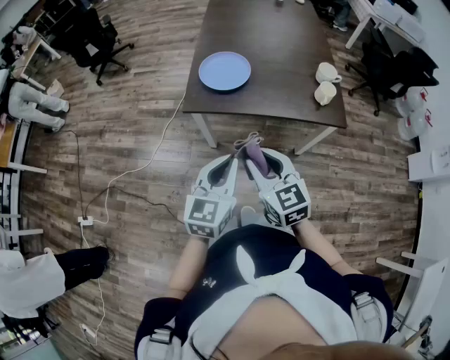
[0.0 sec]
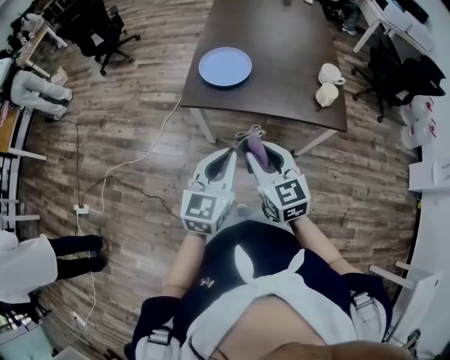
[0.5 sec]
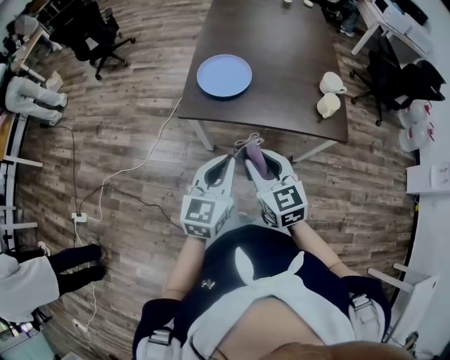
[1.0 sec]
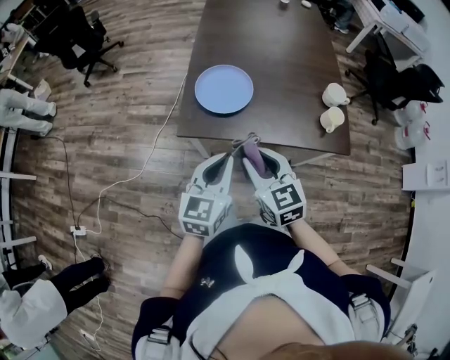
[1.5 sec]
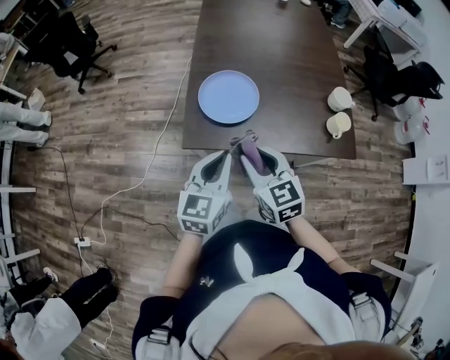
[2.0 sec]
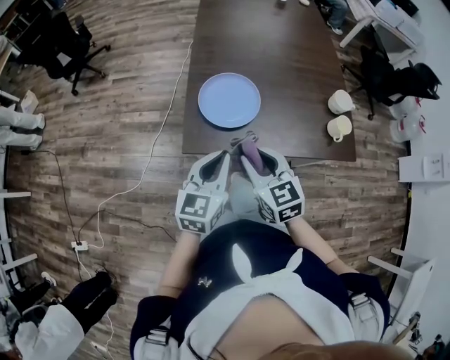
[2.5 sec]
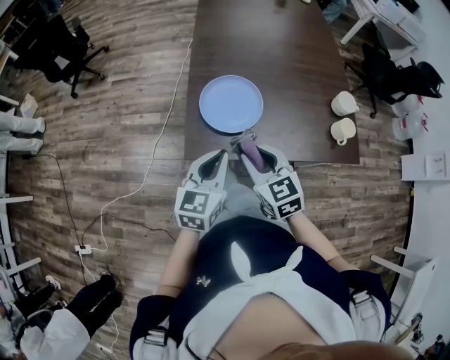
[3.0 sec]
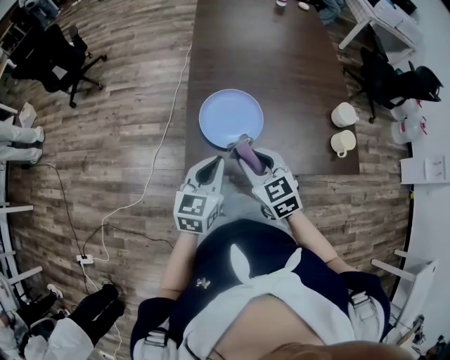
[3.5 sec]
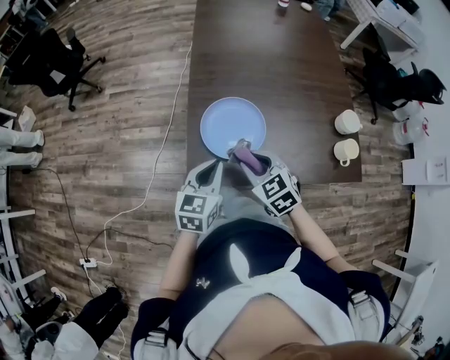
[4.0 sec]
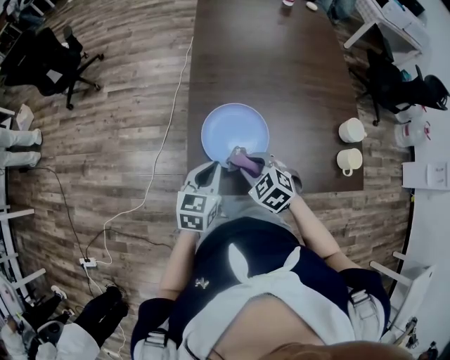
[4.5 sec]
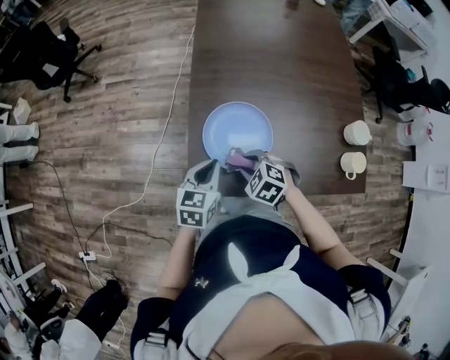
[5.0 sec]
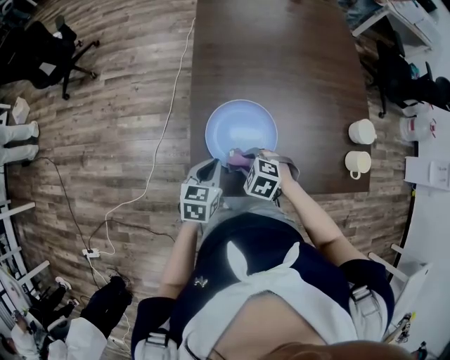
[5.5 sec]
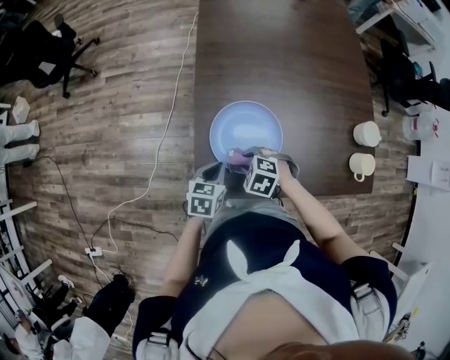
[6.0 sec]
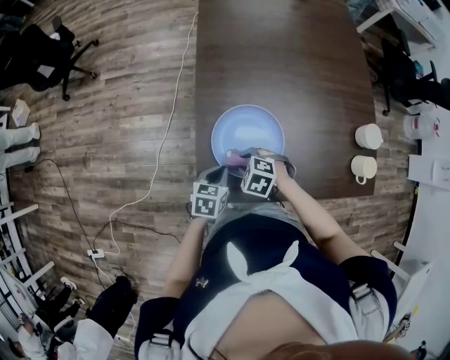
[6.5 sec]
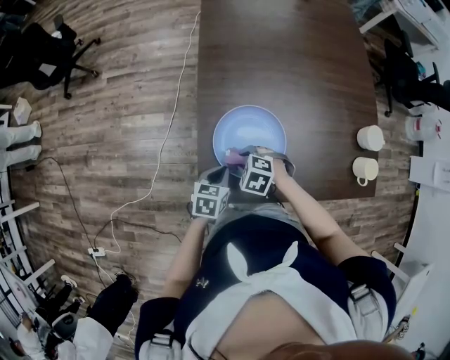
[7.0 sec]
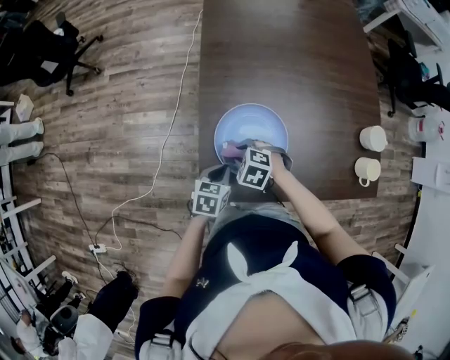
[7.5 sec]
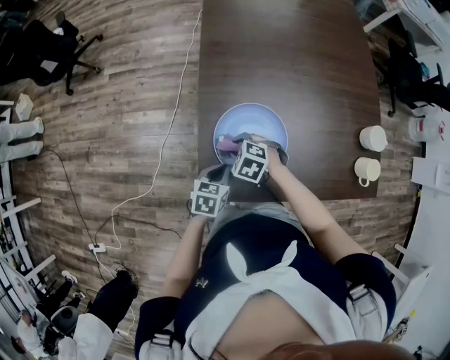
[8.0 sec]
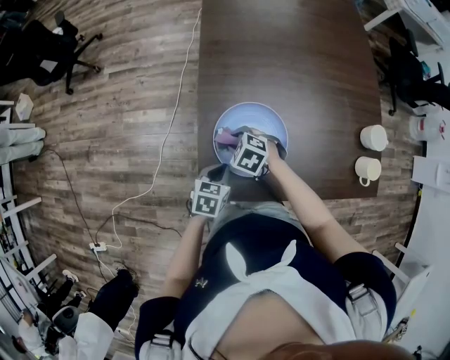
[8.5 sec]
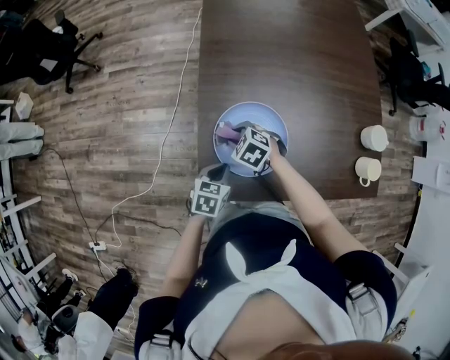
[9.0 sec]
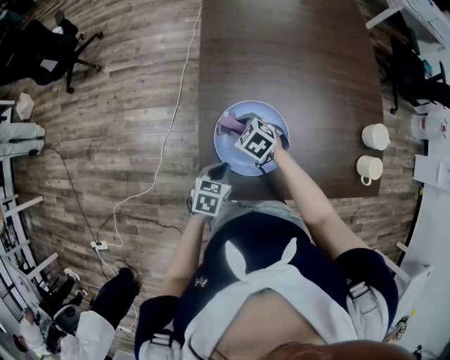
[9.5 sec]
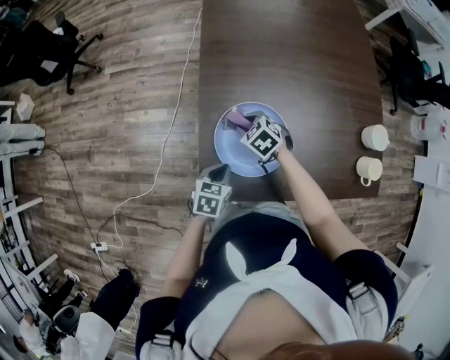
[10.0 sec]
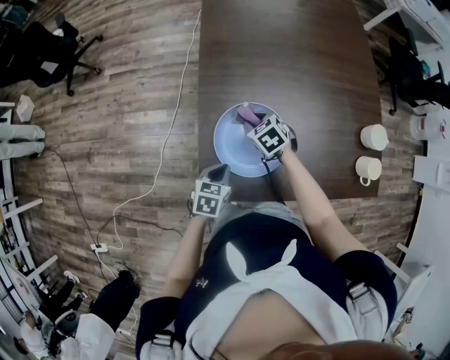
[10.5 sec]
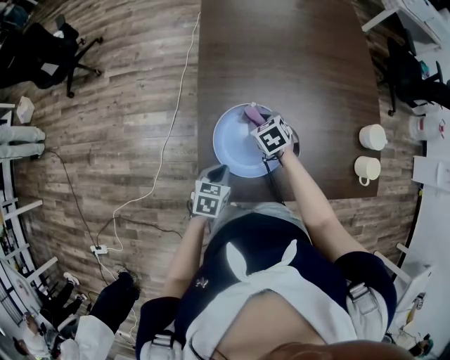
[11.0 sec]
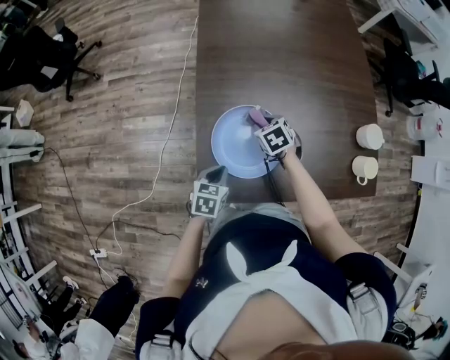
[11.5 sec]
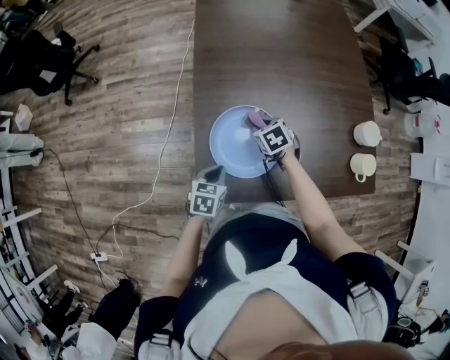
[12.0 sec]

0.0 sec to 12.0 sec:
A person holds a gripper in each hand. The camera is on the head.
0.0 sec to 2.0 sec: Both grippers travel together forward, some 25 cm.
2.0 sec to 4.0 sec: Both grippers travel together forward and downward, roughly 15 cm.
4.0 sec to 6.0 sec: Both grippers move downward and forward, approximately 20 cm. The right gripper angles its fingers downward, by some 30 degrees. Meanwhile the left gripper changes its angle by approximately 20 degrees.
6.0 sec to 8.0 sec: The right gripper goes about 5 cm forward.
8.0 sec to 10.0 sec: The right gripper is displaced forward by approximately 10 cm, and rotates roughly 20 degrees.
10.0 sec to 12.0 sec: The right gripper heads to the right, covering some 10 cm, and swivels about 20 degrees.

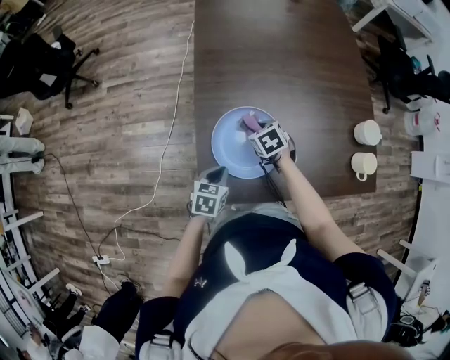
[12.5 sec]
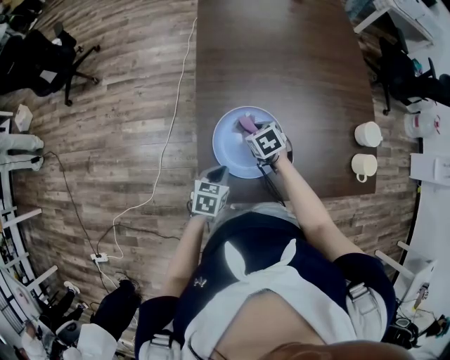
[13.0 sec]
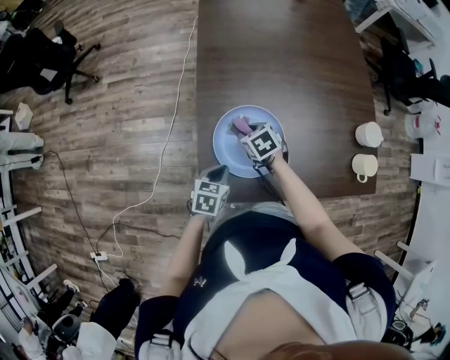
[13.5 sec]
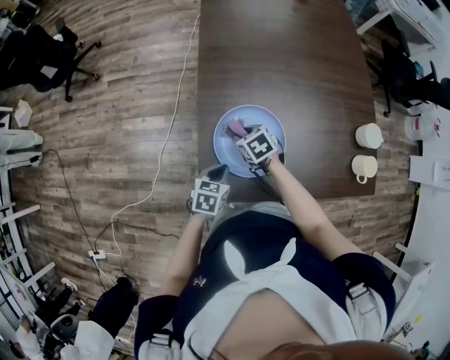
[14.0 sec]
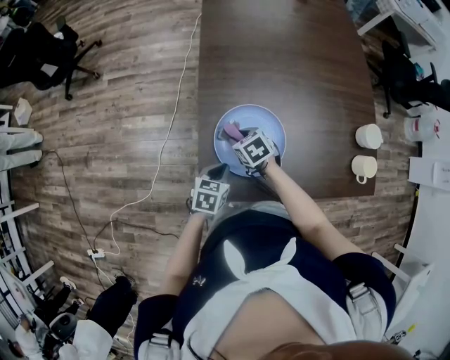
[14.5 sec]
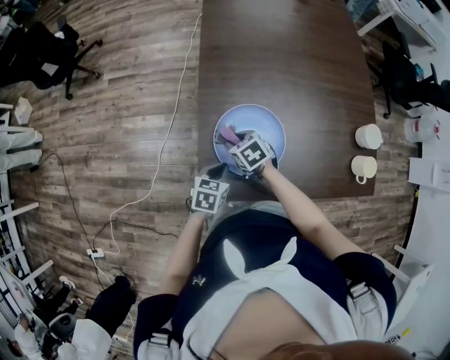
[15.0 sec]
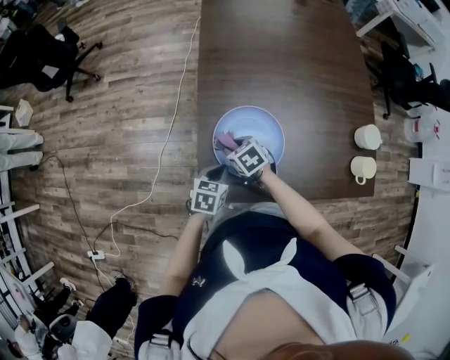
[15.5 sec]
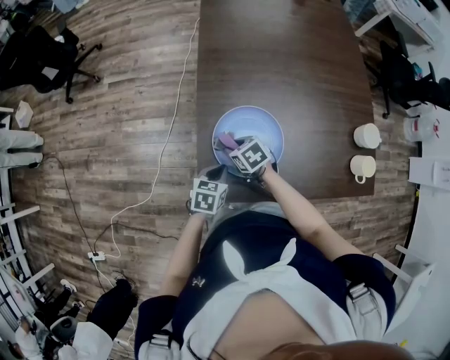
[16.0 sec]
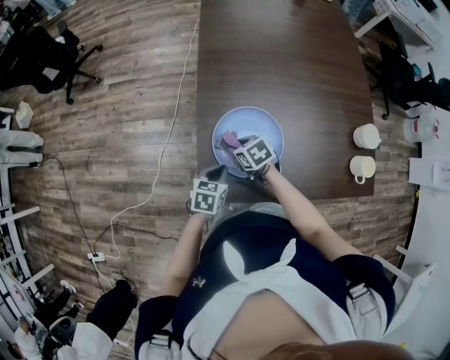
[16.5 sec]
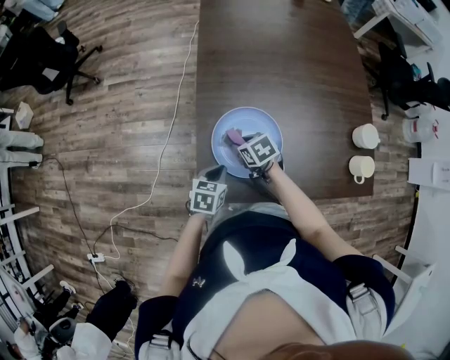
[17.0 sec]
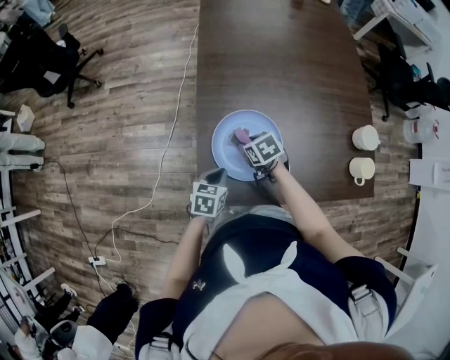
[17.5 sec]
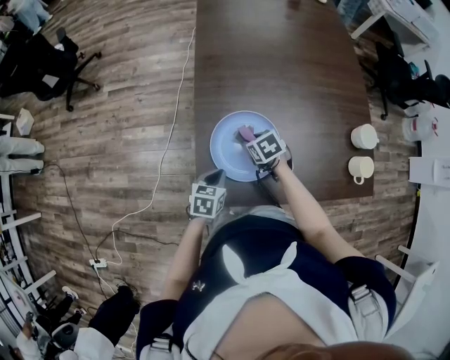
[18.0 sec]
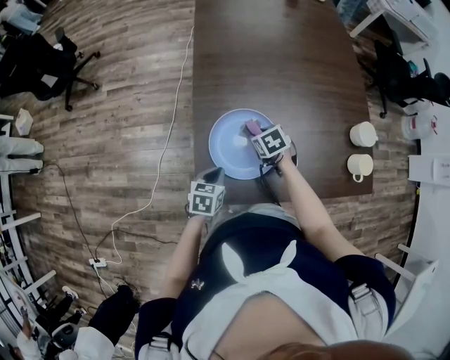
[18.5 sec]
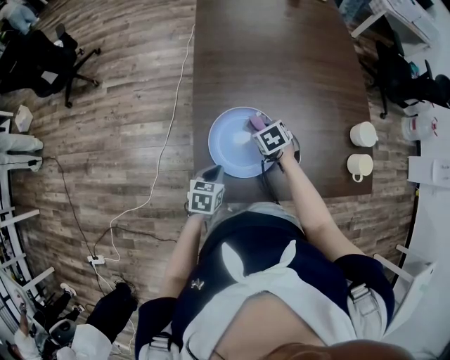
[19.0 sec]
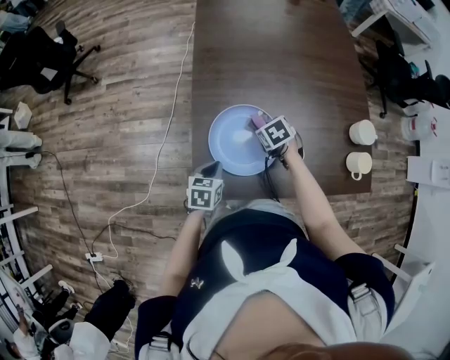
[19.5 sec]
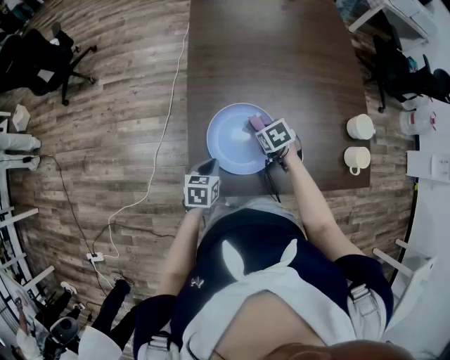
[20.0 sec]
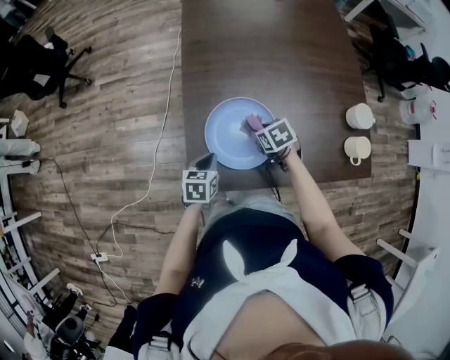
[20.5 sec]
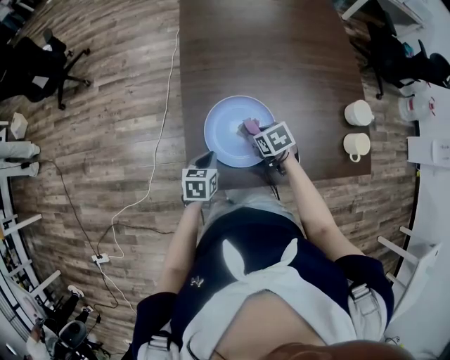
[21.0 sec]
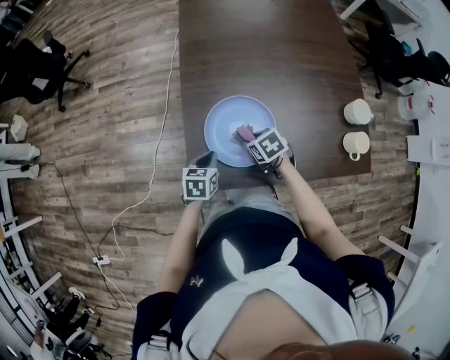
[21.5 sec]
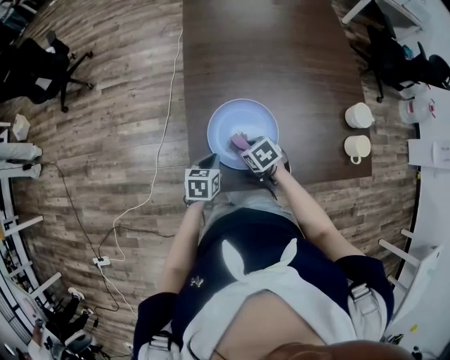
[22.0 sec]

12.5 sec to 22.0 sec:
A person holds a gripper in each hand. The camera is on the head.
12.5 sec to 14.5 sec: The right gripper moves to the left, some 10 cm.
14.5 sec to 16.5 sec: The grippers make only small movements.
16.5 sec to 18.0 sec: The right gripper is displaced to the right by some 5 cm.
18.0 sec to 20.0 sec: The right gripper moves to the right, roughly 5 cm.
20.0 sec to 22.0 sec: The right gripper travels to the left and backward by roughly 10 cm.

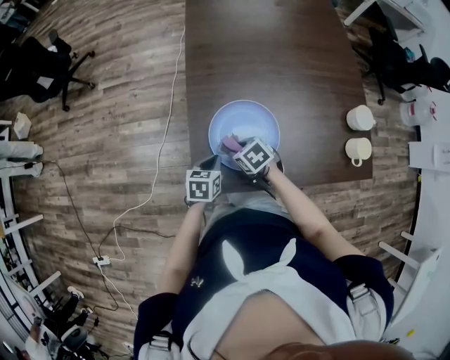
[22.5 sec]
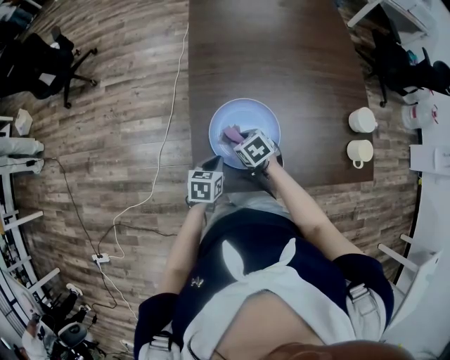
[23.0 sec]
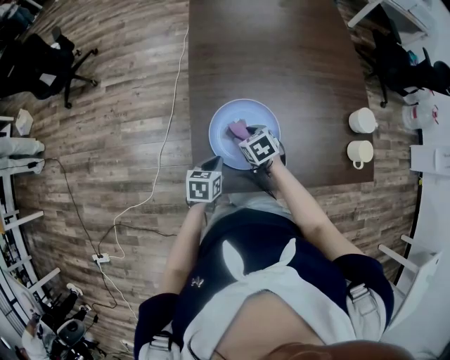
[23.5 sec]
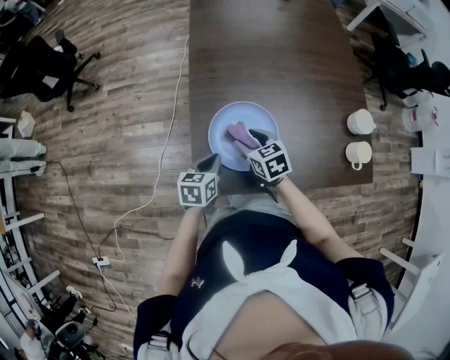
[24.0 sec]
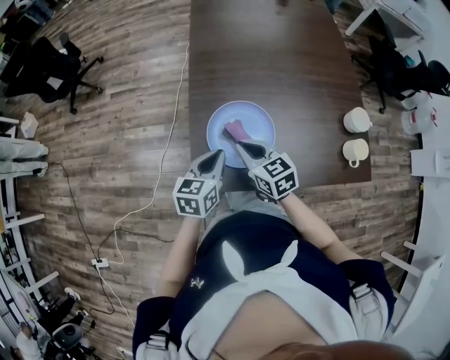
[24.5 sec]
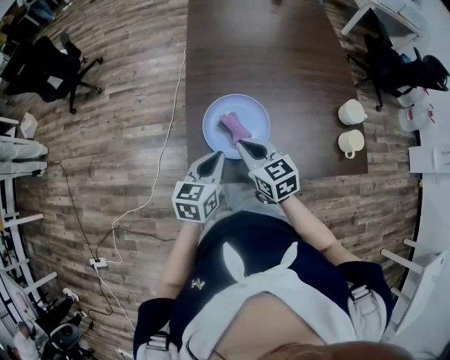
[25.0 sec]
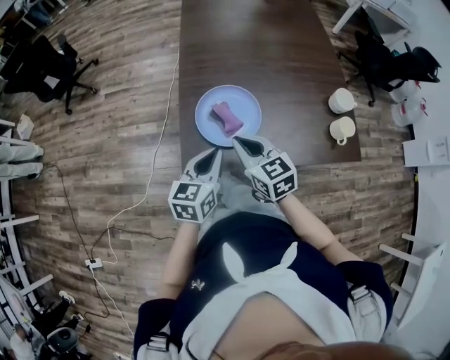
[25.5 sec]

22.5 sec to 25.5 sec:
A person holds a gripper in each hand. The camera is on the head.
22.5 sec to 24.0 sec: The right gripper shifts roughly 5 cm upward, changes its angle by approximately 30 degrees, and opens up.
24.0 sec to 25.5 sec: The right gripper moves backward and upward, about 20 cm, and closes up. Meanwhile the left gripper shifts about 15 cm upward and backward, and rotates roughly 20 degrees.

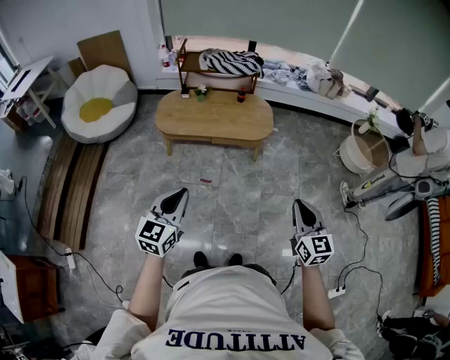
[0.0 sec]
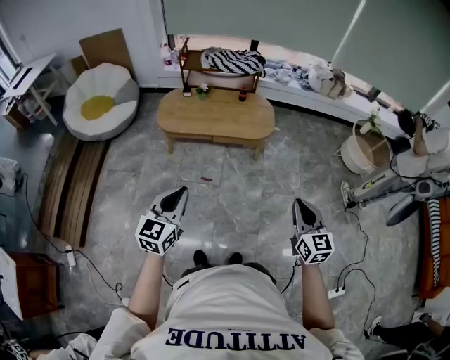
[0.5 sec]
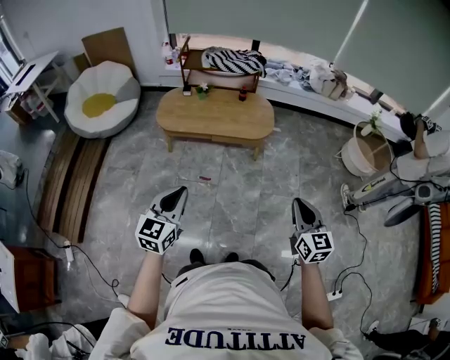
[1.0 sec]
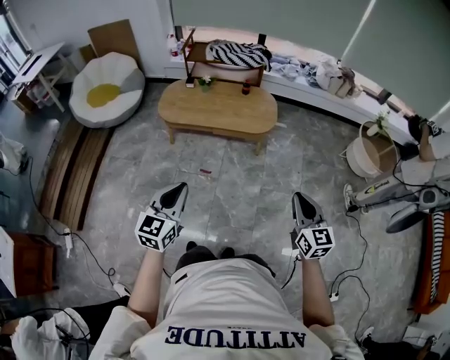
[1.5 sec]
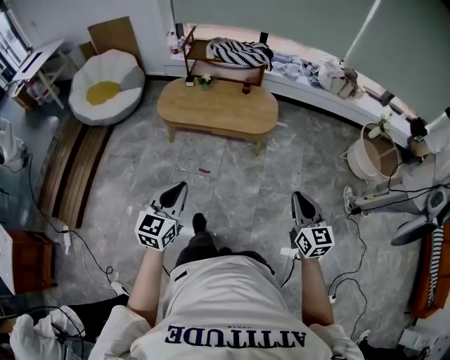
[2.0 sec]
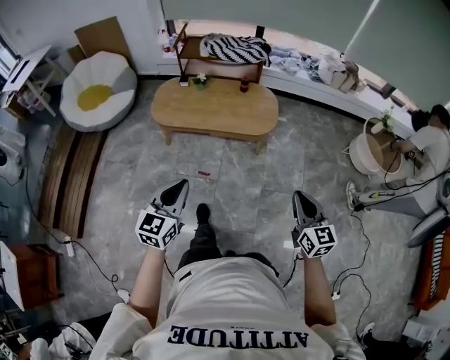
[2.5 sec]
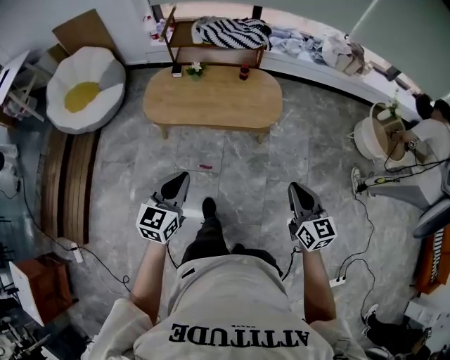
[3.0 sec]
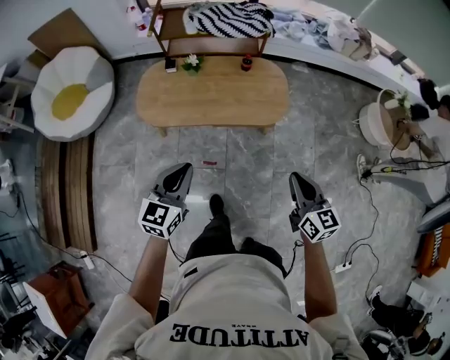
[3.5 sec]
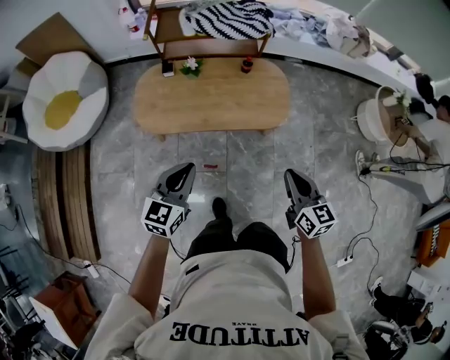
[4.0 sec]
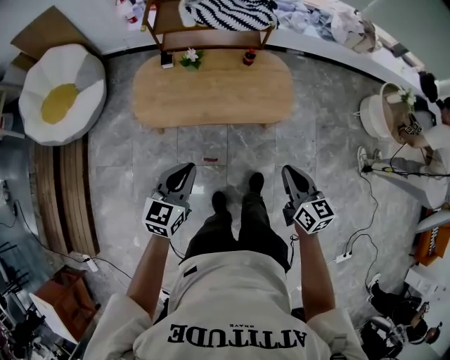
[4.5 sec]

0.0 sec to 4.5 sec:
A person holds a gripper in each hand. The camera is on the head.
0.0 sec to 2.0 sec: The right gripper is displaced to the right and forward by about 10 cm, while the left gripper is displaced to the right by about 10 cm.
2.0 sec to 4.5 sec: The two grippers travel together, forward and to the left, about 40 cm. The right gripper rotates approximately 20 degrees.
